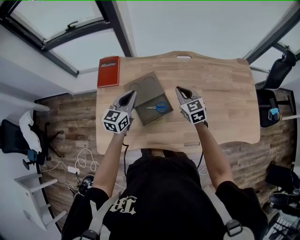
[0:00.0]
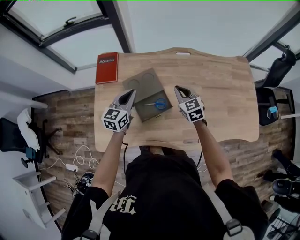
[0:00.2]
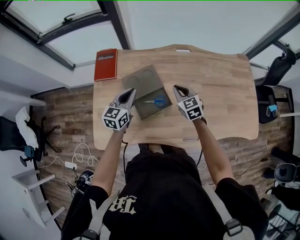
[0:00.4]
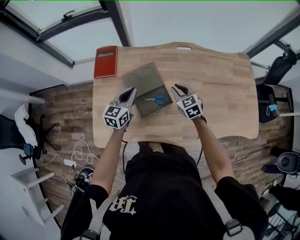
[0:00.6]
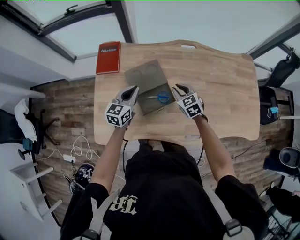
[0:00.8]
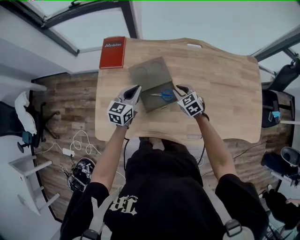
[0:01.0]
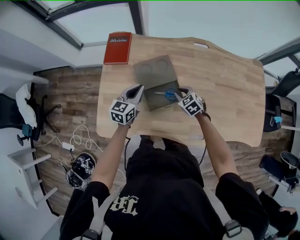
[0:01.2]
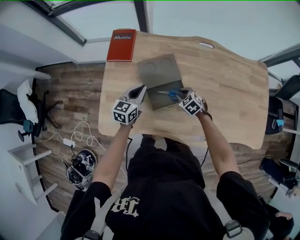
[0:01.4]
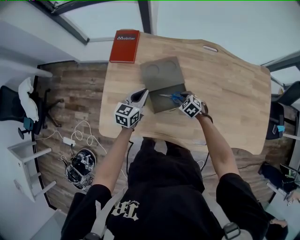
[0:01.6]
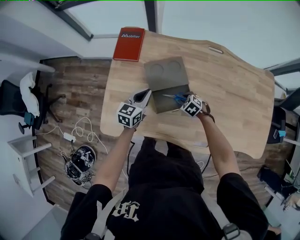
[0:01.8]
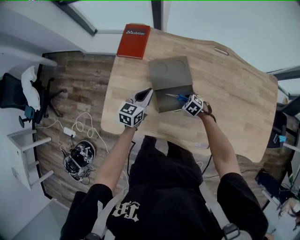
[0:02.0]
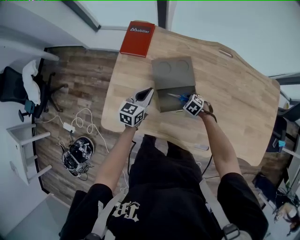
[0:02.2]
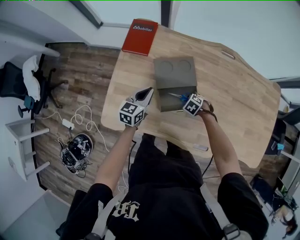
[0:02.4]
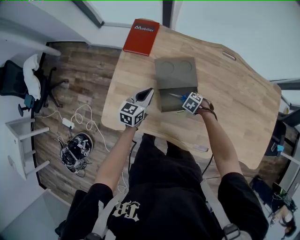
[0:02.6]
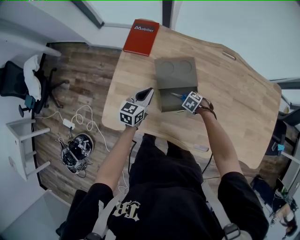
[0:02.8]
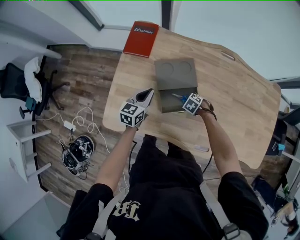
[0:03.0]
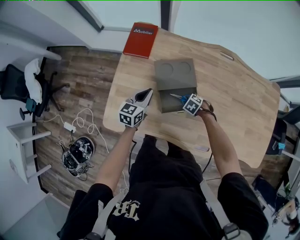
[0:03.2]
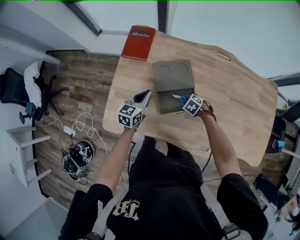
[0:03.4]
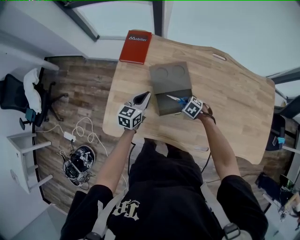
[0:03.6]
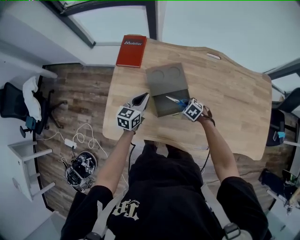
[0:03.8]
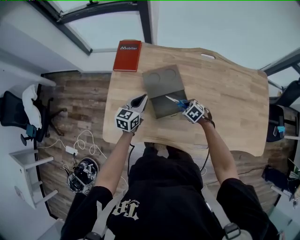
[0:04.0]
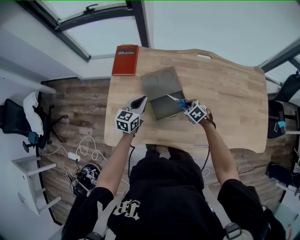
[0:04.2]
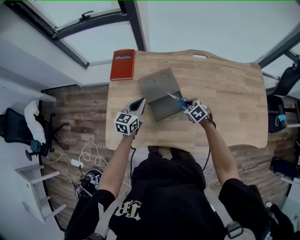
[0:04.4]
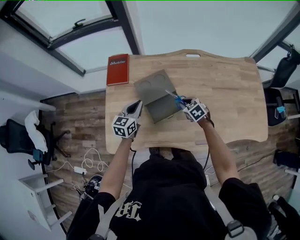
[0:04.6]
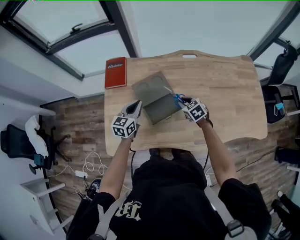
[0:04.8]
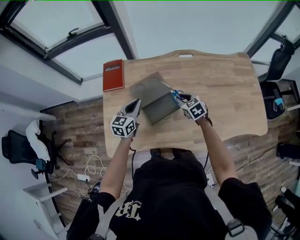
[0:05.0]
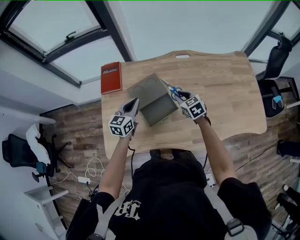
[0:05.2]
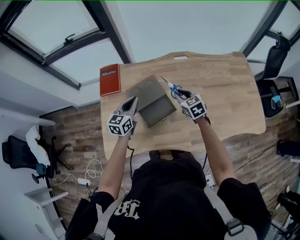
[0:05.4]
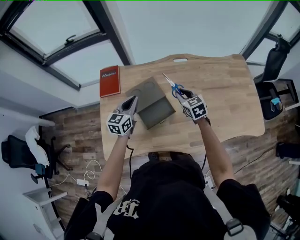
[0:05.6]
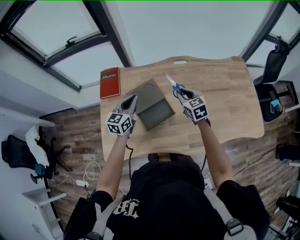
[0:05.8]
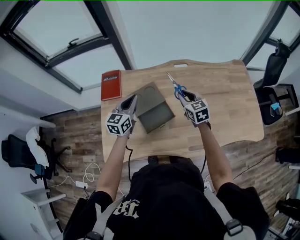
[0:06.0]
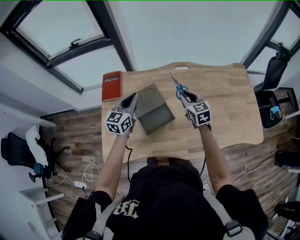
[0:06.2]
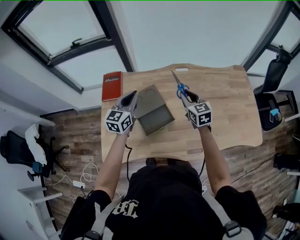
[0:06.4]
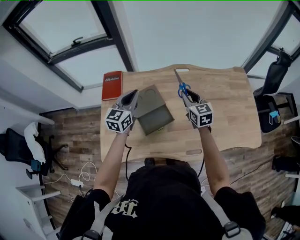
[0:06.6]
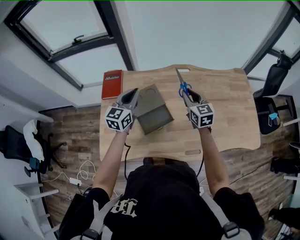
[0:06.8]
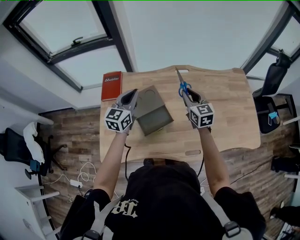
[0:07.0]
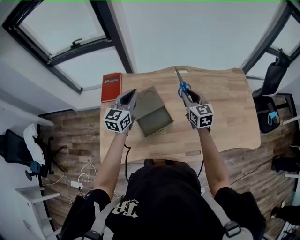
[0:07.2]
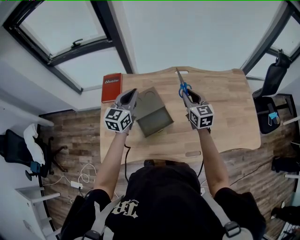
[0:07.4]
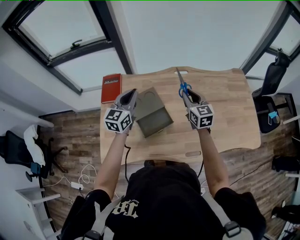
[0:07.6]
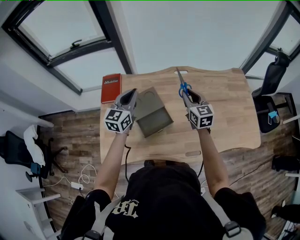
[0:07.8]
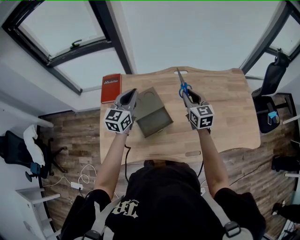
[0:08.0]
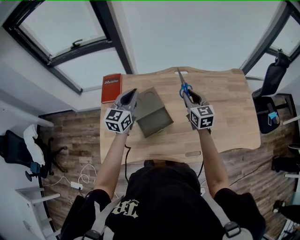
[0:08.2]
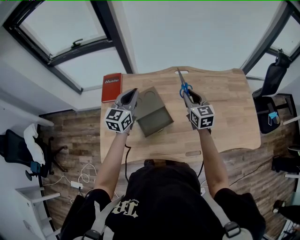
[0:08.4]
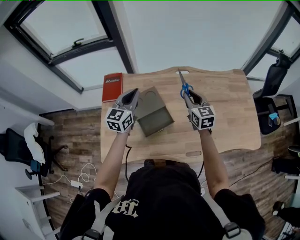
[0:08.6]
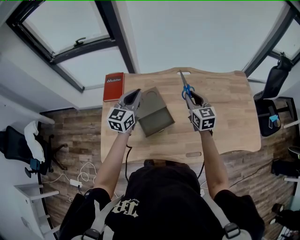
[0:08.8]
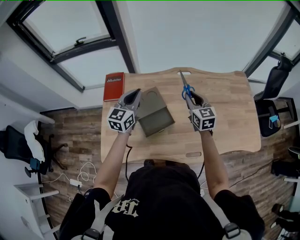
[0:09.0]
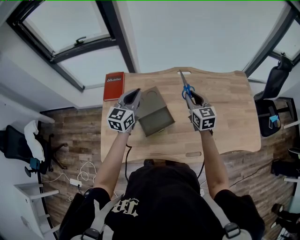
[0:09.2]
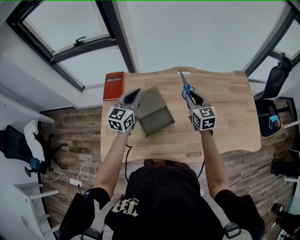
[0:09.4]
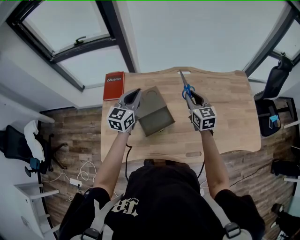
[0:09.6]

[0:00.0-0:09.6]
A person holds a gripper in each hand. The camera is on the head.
0:00.0 to 0:01.6: The left gripper travels downward by approximately 10 cm. The right gripper goes some 25 cm downward, points its fingers some 40 degrees further downward, and opens.
0:01.6 to 0:03.2: The right gripper moves downward, some 5 cm, and changes its angle by about 20 degrees.
0:03.2 to 0:04.8: The right gripper heads upward, covering some 20 cm, and swivels roughly 50 degrees. The left gripper is displaced upward by roughly 5 cm.
0:04.8 to 0:06.4: The right gripper travels upward by approximately 15 cm, and turns by about 30 degrees. Meanwhile the left gripper heads upward and forward, covering some 15 cm.
0:06.4 to 0:08.0: The grippers stay close to where they were, moving slightly.
0:08.0 to 0:09.6: Both grippers stay put.

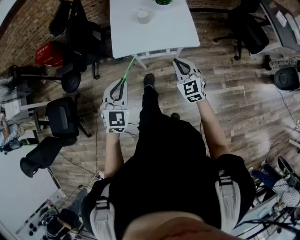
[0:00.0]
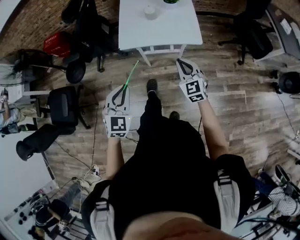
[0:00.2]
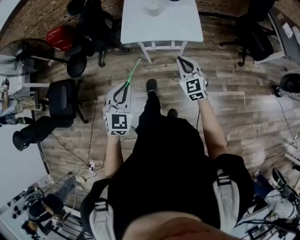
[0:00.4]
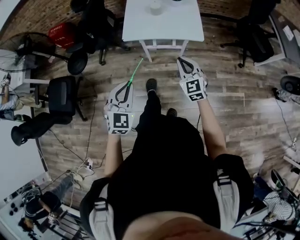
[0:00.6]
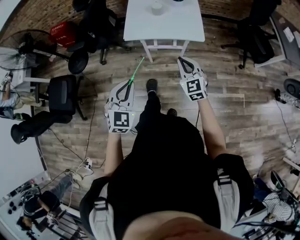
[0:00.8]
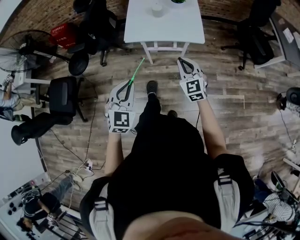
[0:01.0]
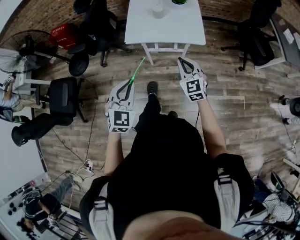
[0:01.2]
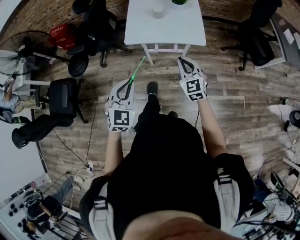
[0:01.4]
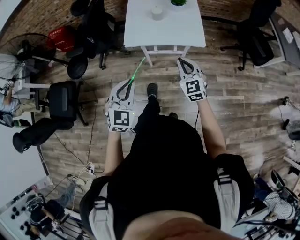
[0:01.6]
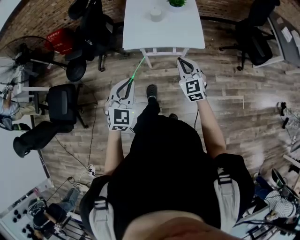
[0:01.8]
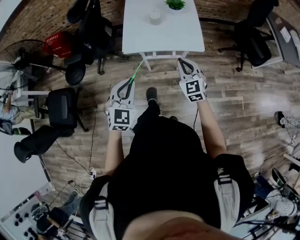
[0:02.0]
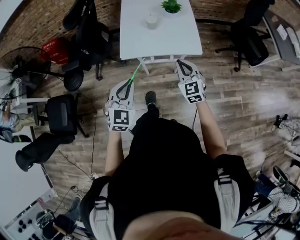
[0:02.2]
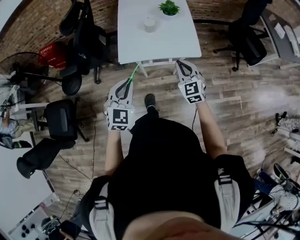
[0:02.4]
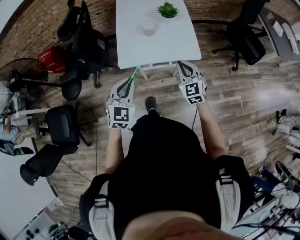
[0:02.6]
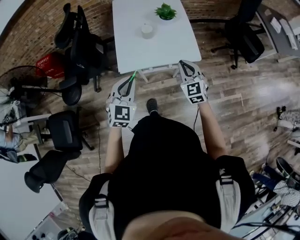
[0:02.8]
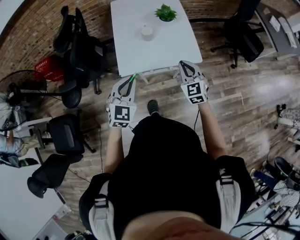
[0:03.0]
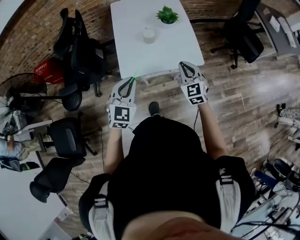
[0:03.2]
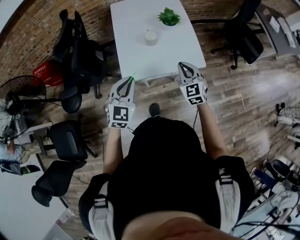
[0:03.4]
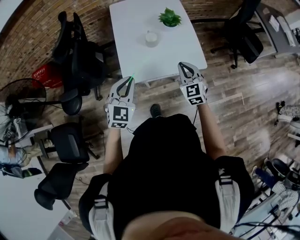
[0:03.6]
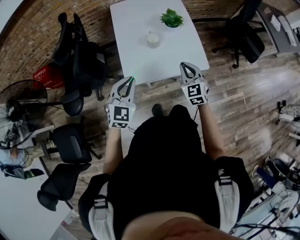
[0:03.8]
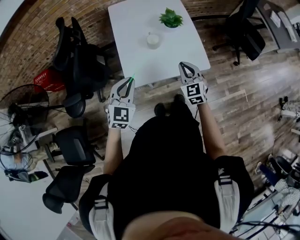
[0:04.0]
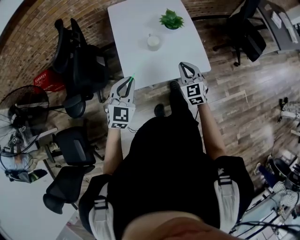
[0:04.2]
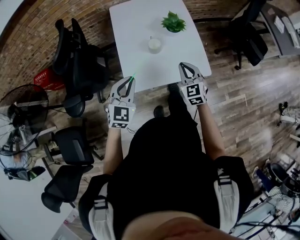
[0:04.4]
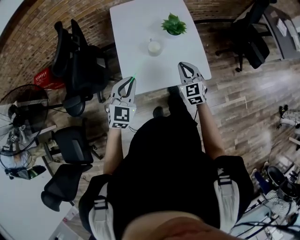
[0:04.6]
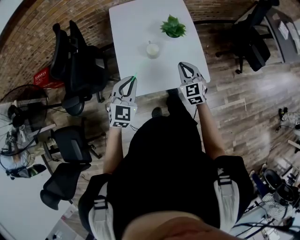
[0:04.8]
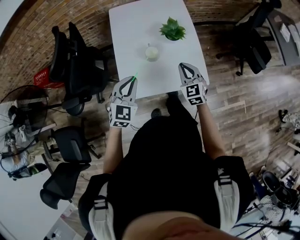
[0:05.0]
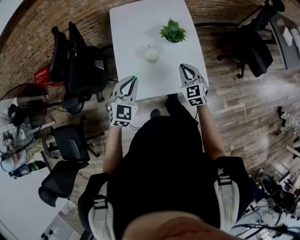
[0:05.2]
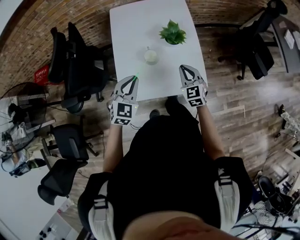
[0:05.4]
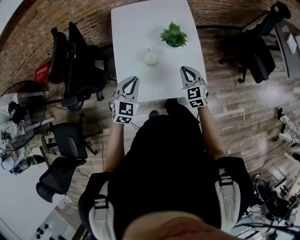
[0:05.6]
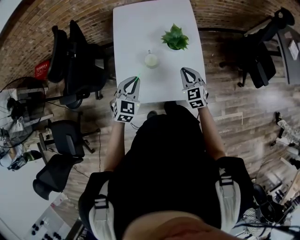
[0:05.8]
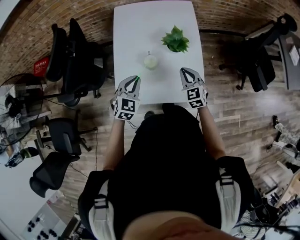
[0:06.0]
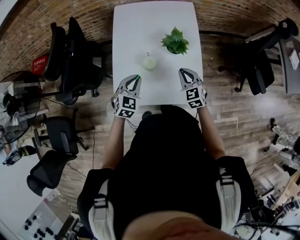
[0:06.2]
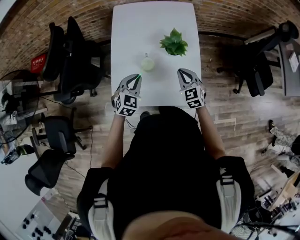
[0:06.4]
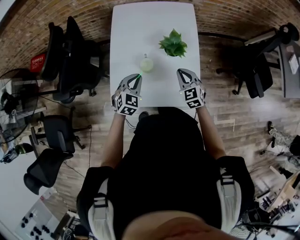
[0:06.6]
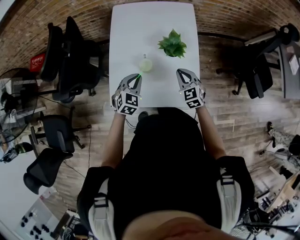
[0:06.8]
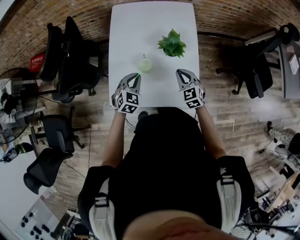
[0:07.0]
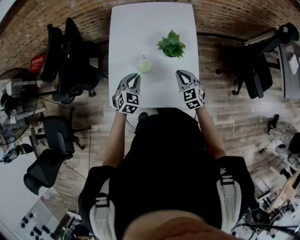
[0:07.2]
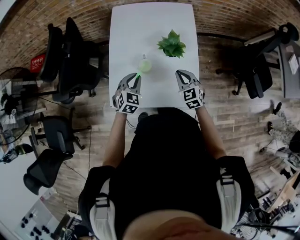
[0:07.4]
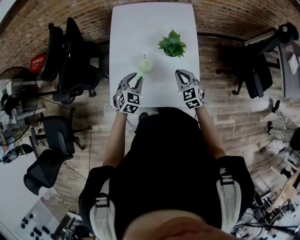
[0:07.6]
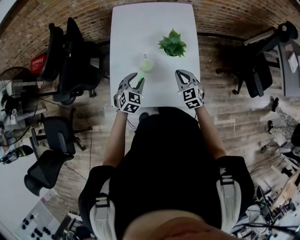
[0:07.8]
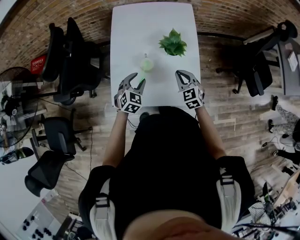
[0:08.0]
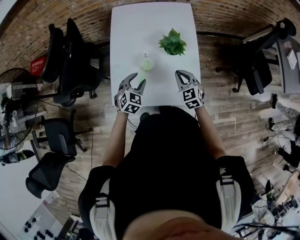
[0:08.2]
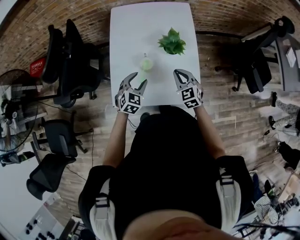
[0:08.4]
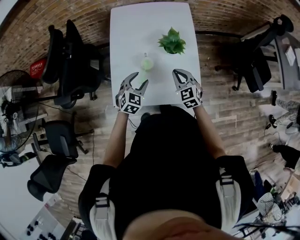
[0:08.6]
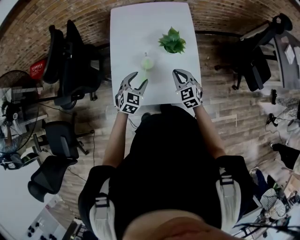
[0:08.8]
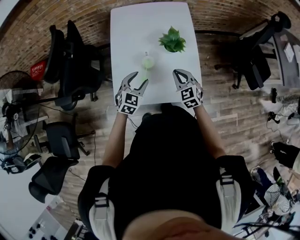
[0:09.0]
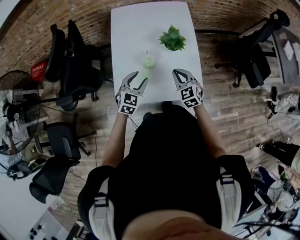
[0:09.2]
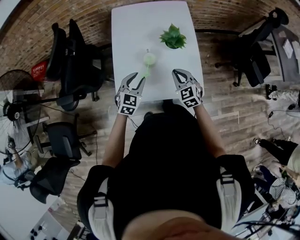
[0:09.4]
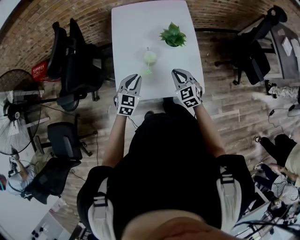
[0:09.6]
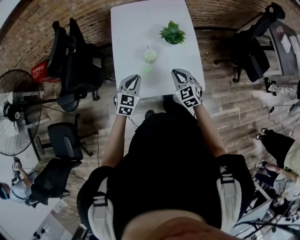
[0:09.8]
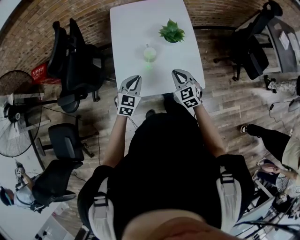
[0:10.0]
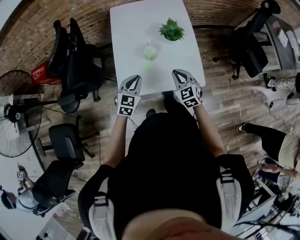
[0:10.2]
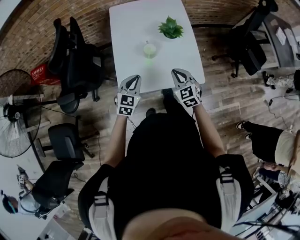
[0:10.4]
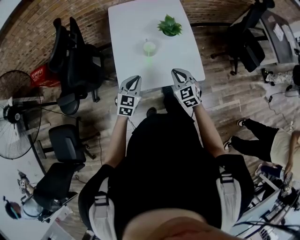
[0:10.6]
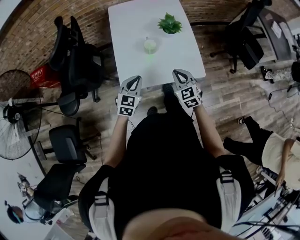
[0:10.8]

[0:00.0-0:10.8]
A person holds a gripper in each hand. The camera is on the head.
0:00.0 to 0:01.6: The left gripper is displaced backward by roughly 10 cm, while the right gripper moves backward, roughly 5 cm.
0:01.6 to 0:03.0: Both grippers travel together forward, roughly 20 cm.
0:03.0 to 0:04.6: Both grippers move forward, about 15 cm.
0:04.6 to 0:06.2: The right gripper heads forward, to the right and downward, covering roughly 15 cm, while the left gripper shifts some 20 cm forward, downward and to the right.
0:06.2 to 0:07.8: The left gripper moves approximately 5 cm, and opens up.
0:07.8 to 0:09.2: The left gripper shifts by approximately 5 cm. Meanwhile the right gripper moves some 5 cm.
0:09.2 to 0:10.8: The left gripper shifts approximately 15 cm backward and to the left, and closes. The right gripper shifts some 15 cm backward.

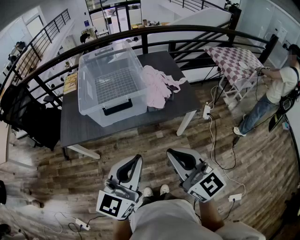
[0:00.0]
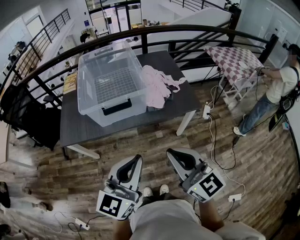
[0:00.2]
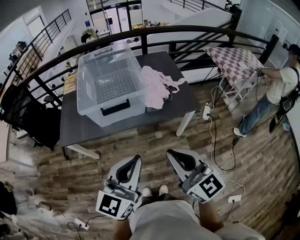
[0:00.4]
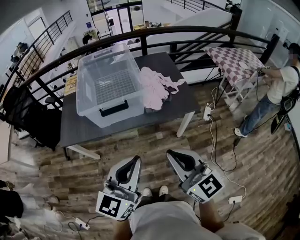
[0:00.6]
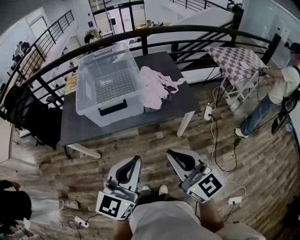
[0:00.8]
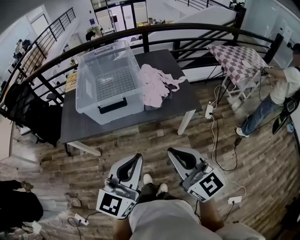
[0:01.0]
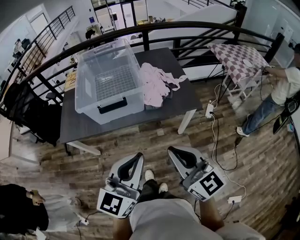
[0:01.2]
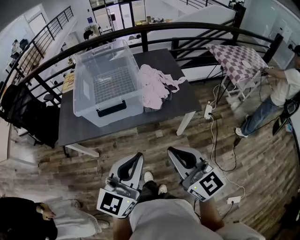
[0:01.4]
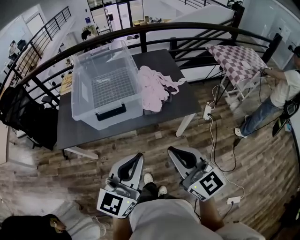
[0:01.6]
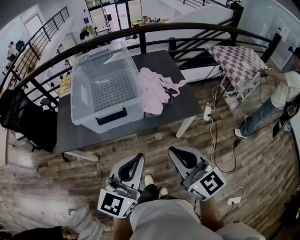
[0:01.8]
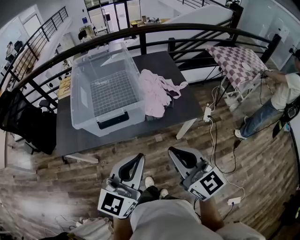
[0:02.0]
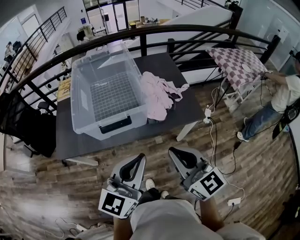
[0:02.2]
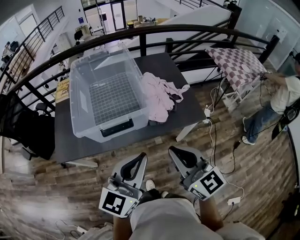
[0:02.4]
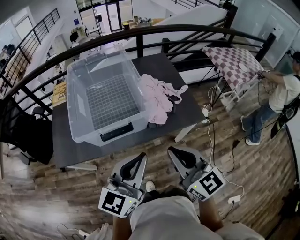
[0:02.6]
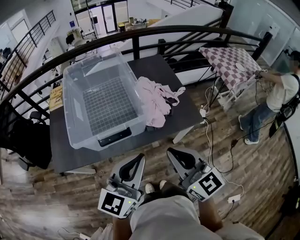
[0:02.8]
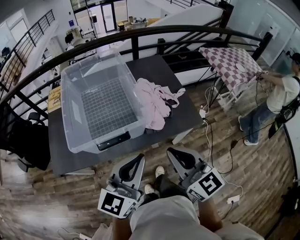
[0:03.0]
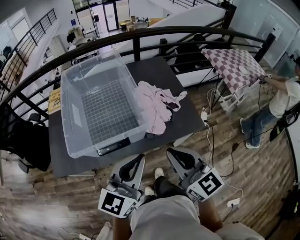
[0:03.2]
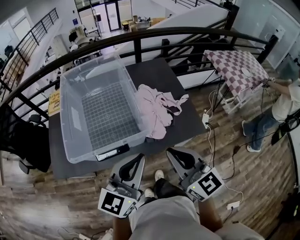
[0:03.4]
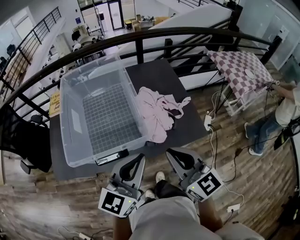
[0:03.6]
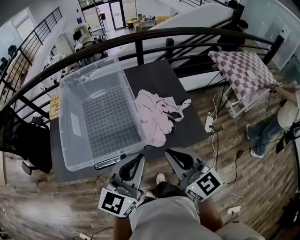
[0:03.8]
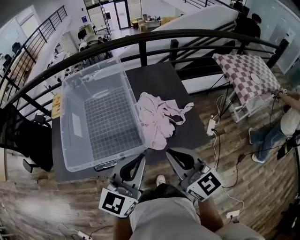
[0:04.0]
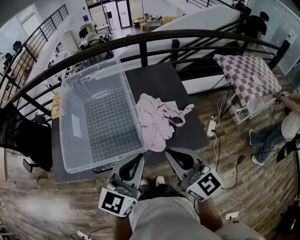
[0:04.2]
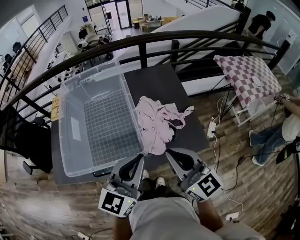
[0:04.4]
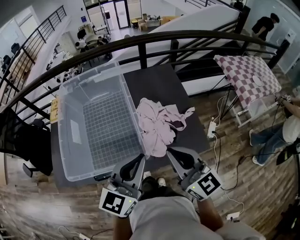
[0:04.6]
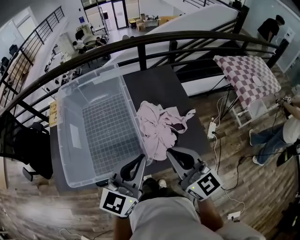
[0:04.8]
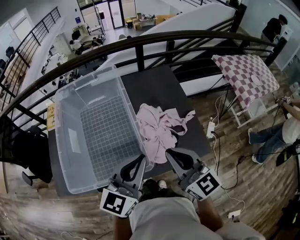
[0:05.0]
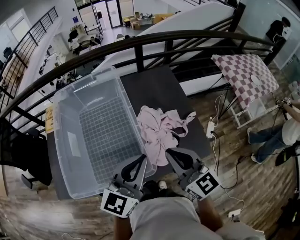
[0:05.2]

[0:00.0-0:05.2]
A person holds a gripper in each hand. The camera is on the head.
0:00.0 to 0:01.8: Both grippers travel together forward, some 5 cm.
0:01.8 to 0:03.4: The grippers both shift forward by roughly 20 cm.
0:03.4 to 0:05.2: The two grippers go about 15 cm forward.
